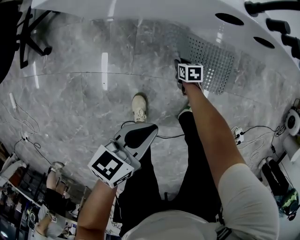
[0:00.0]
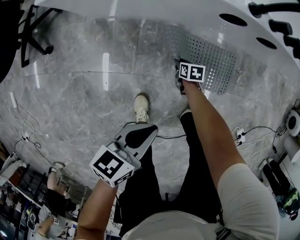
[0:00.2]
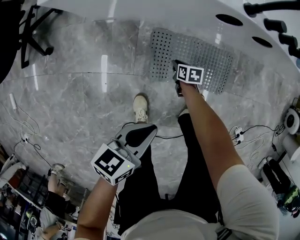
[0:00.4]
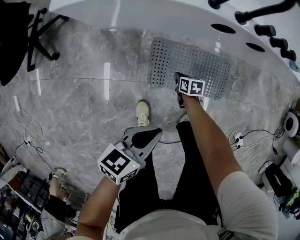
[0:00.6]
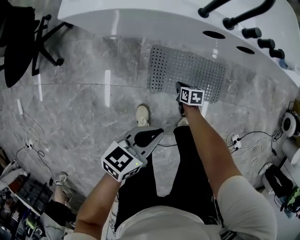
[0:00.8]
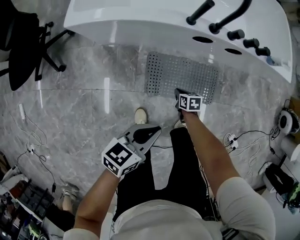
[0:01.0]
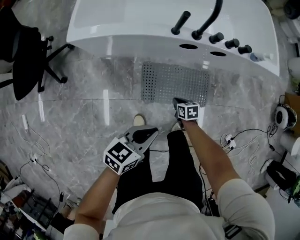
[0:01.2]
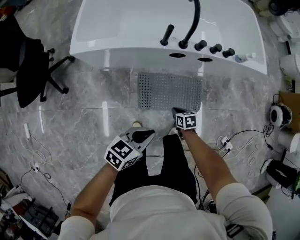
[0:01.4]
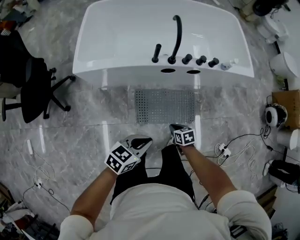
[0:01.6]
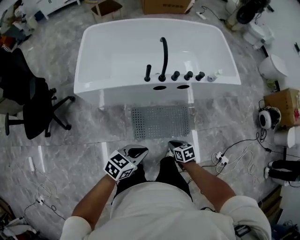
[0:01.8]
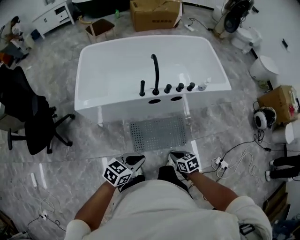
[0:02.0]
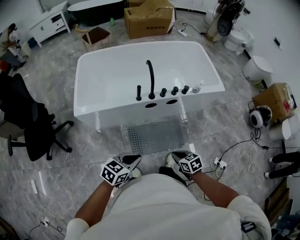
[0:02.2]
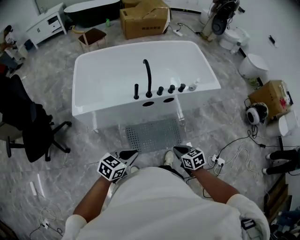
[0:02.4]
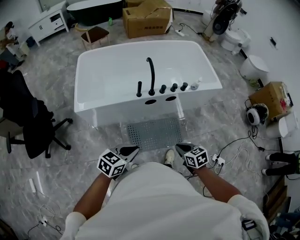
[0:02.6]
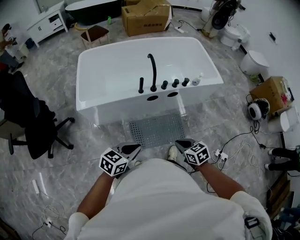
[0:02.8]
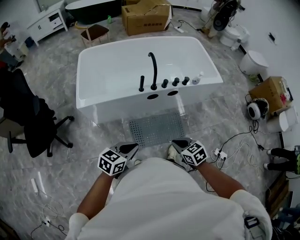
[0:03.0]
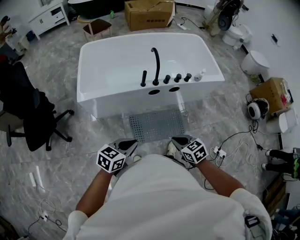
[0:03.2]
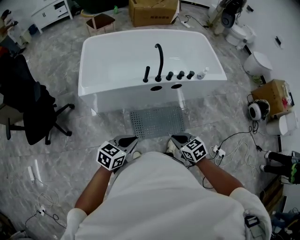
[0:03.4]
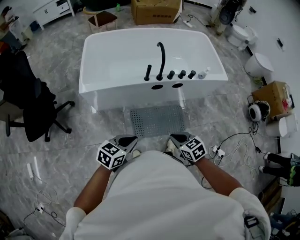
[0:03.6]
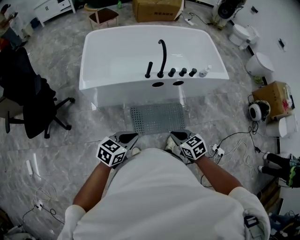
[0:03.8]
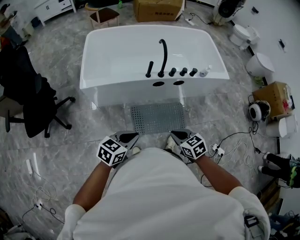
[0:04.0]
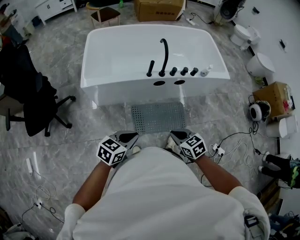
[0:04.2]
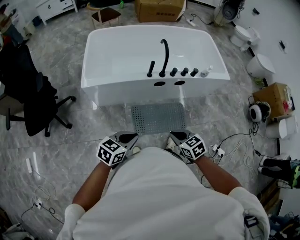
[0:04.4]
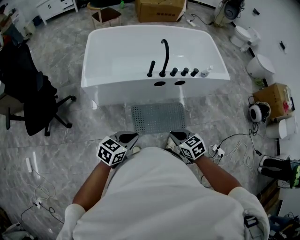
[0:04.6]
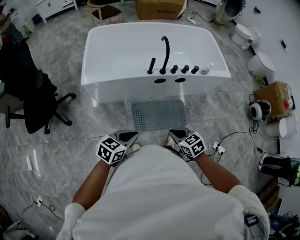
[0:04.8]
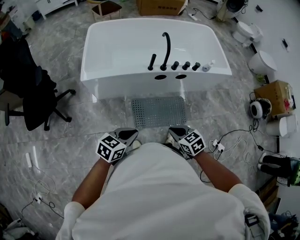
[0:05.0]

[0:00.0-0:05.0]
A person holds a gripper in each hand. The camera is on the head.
0:00.0 to 0:01.6: The left gripper is displaced upward by roughly 20 cm, and rotates approximately 30 degrees, while the right gripper heads upward and backward, covering approximately 40 cm.
0:01.6 to 0:03.4: The left gripper moves upward, to the left and backward, roughly 15 cm. Meanwhile the right gripper goes approximately 25 cm upward, and rotates roughly 20 degrees.
0:03.4 to 0:05.0: The grippers move only a little.

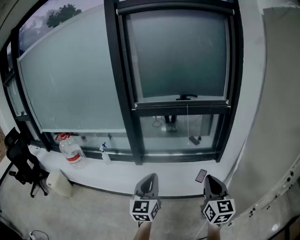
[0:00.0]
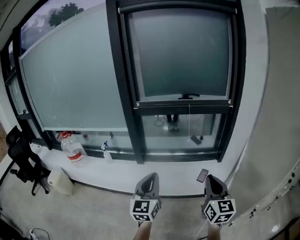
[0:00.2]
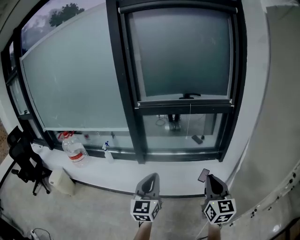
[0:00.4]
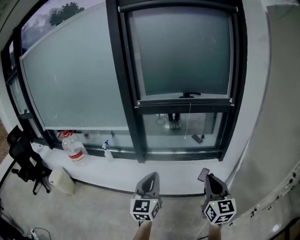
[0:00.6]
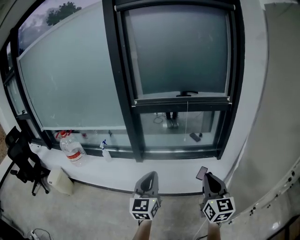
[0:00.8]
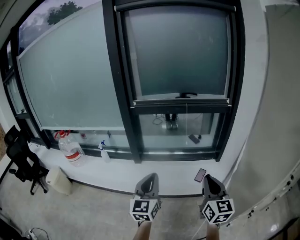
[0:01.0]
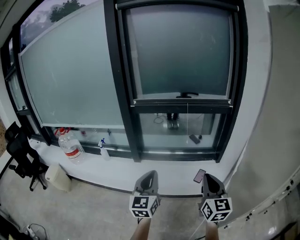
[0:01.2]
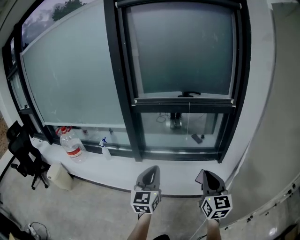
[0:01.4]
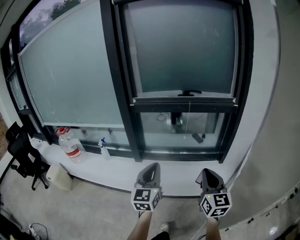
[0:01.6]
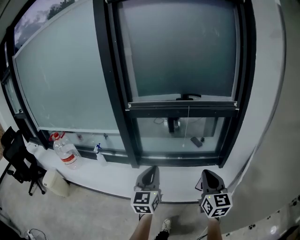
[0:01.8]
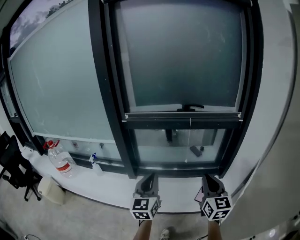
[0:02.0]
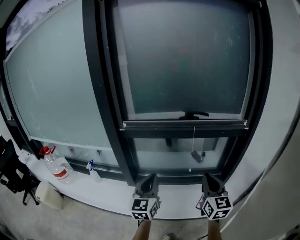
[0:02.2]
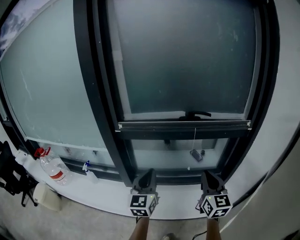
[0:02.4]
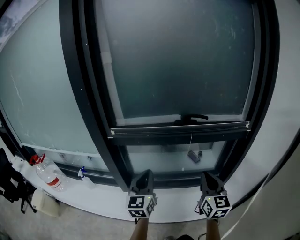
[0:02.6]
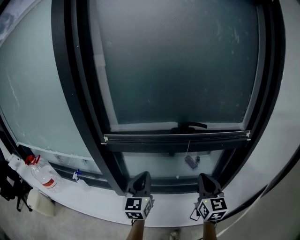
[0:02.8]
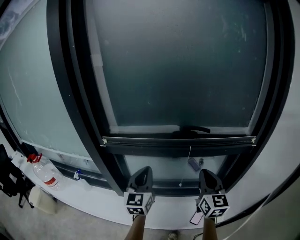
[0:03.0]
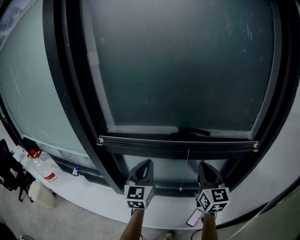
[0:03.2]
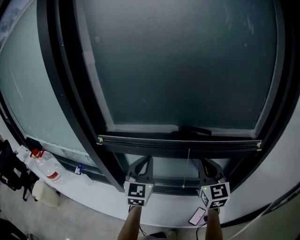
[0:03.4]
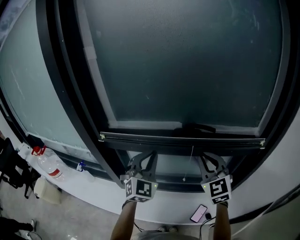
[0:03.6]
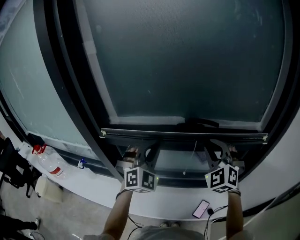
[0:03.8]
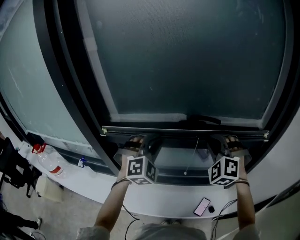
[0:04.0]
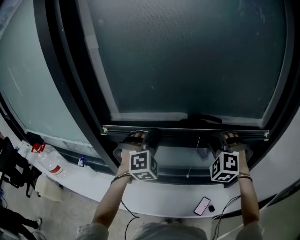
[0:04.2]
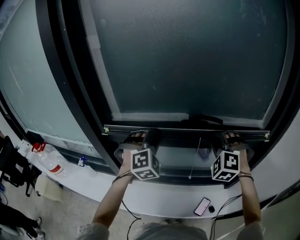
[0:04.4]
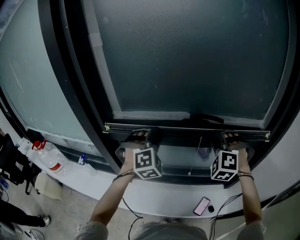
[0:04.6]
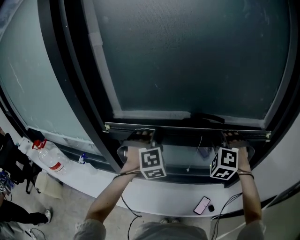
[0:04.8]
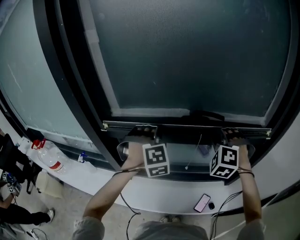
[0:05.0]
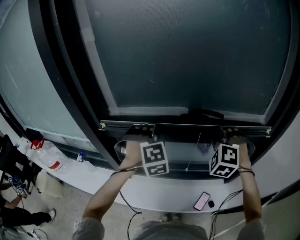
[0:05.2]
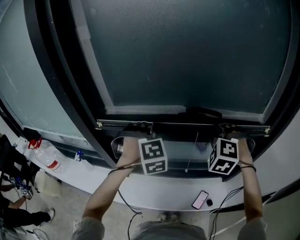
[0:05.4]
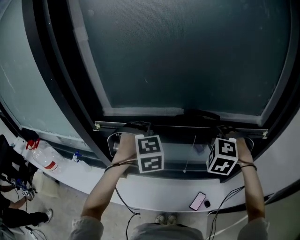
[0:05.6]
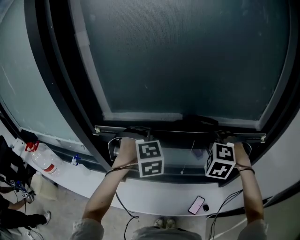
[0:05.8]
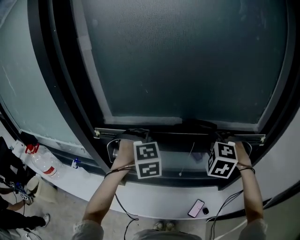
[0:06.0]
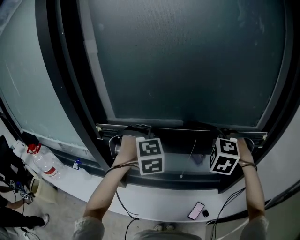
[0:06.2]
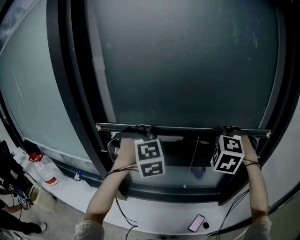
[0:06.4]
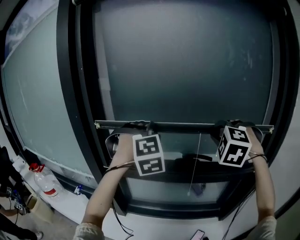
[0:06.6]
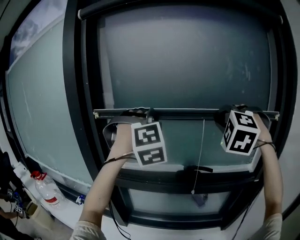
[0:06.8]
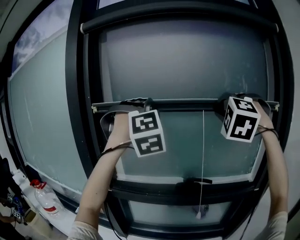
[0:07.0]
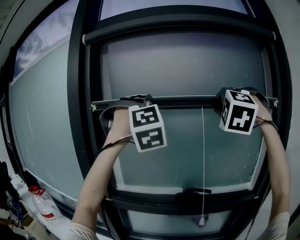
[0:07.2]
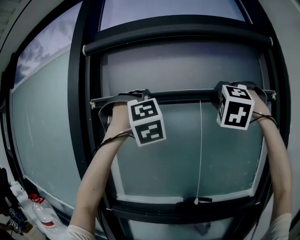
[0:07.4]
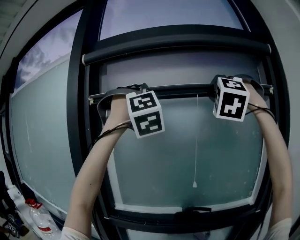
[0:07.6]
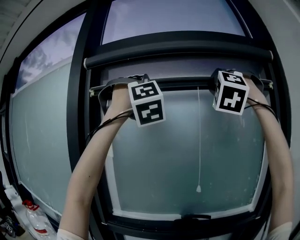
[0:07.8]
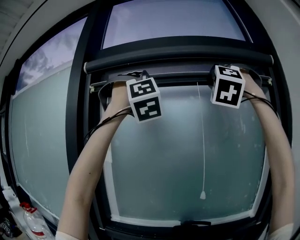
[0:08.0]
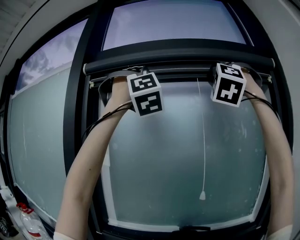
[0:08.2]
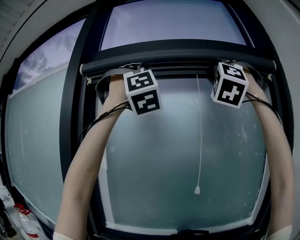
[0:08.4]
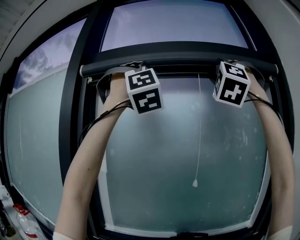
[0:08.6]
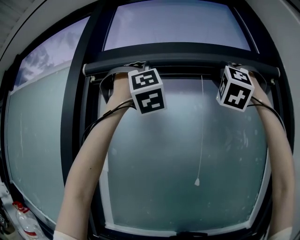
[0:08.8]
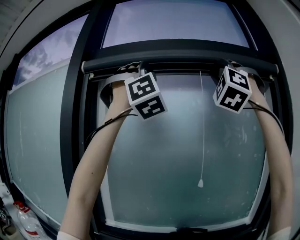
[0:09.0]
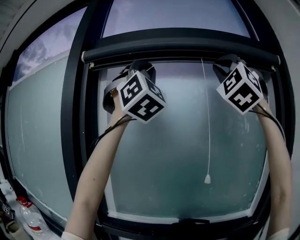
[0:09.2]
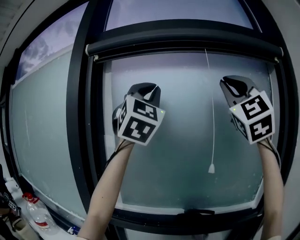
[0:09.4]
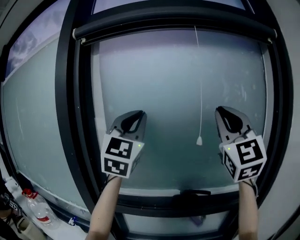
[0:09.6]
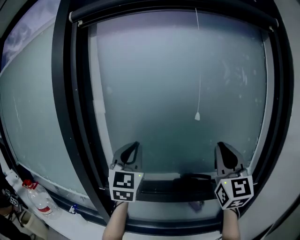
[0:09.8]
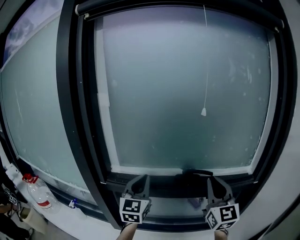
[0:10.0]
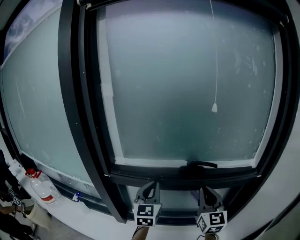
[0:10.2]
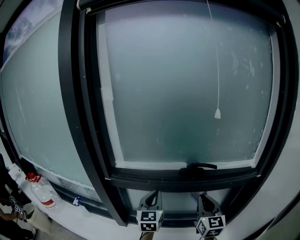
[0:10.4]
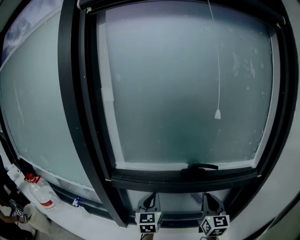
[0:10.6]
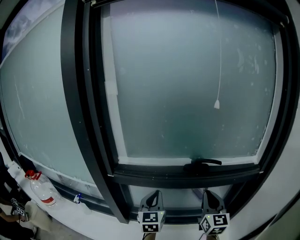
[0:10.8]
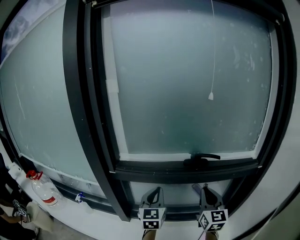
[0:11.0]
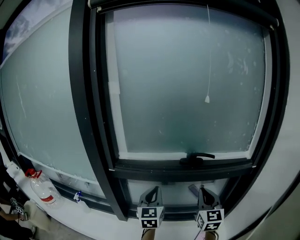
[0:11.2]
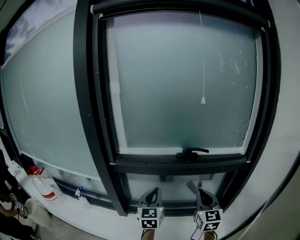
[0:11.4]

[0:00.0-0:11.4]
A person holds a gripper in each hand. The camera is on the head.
0:00.0 to 0:01.4: Both grippers move forward, some 5 cm.
0:01.4 to 0:02.8: The grippers both shift forward by some 40 cm.
0:02.8 to 0:04.2: Both grippers move forward, about 15 cm. The right gripper twists about 80 degrees counterclockwise, seen from behind. Meanwhile the left gripper rotates around the line of its fingers by roughly 70 degrees, clockwise from behind.
0:04.2 to 0:05.6: The left gripper swivels some 30 degrees.
0:05.6 to 0:07.2: Both grippers travel together upward, roughly 50 cm. The left gripper points its fingers approximately 40 degrees further upward. The right gripper tilts its fingers some 30 degrees upward.
0:07.2 to 0:08.6: Both grippers travel together upward, some 25 cm. The left gripper swivels approximately 30 degrees. Meanwhile the right gripper tilts its fingers approximately 30 degrees upward.
0:08.6 to 0:10.0: Both grippers move downward, about 60 cm. The left gripper rotates around the line of its fingers by approximately 80 degrees, counterclockwise from behind, while the right gripper rotates around the line of its fingers by about 80 degrees, clockwise from behind.
0:10.0 to 0:11.4: The right gripper is displaced downward and backward by roughly 15 cm. The left gripper moves backward and downward, about 15 cm.

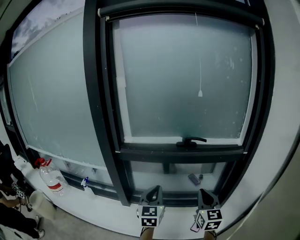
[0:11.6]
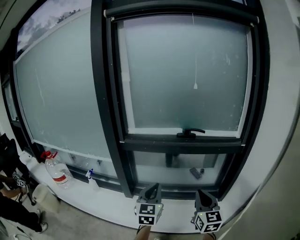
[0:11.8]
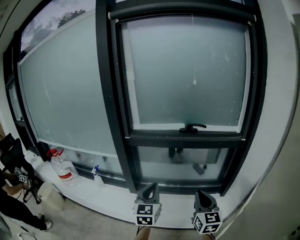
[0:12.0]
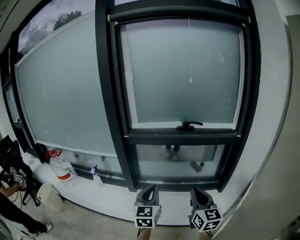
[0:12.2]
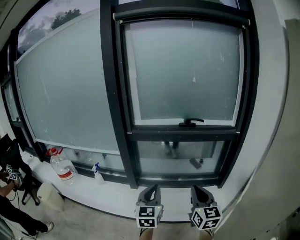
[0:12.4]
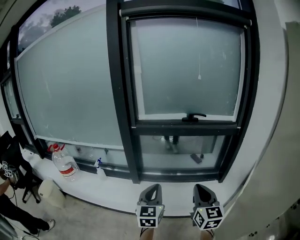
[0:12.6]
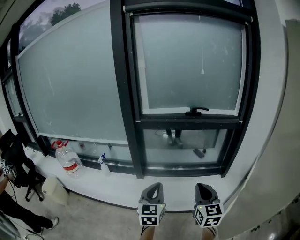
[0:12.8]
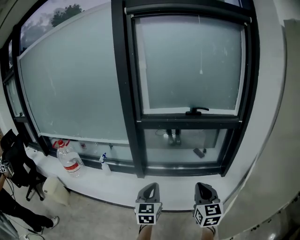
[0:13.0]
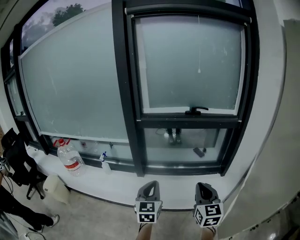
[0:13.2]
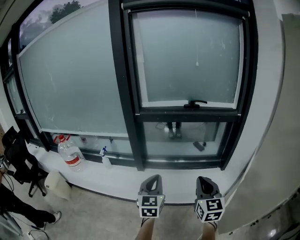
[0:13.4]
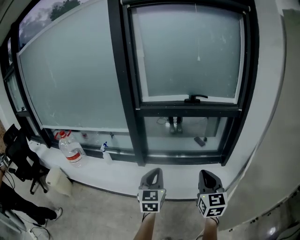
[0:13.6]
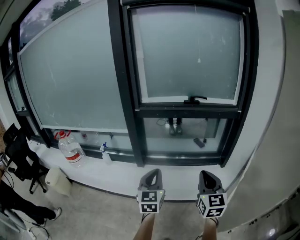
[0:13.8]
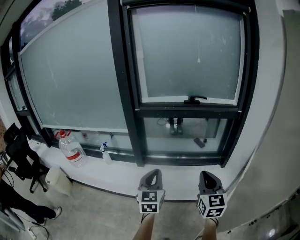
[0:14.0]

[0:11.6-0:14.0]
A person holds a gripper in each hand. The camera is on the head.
0:11.6 to 0:12.8: The left gripper moves backward, roughly 25 cm, while the right gripper travels backward and to the left by roughly 25 cm.
0:12.8 to 0:14.0: The right gripper ends up about 5 cm from where it was.

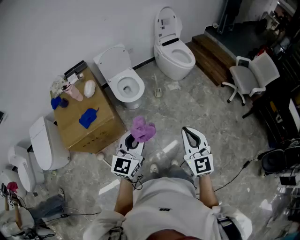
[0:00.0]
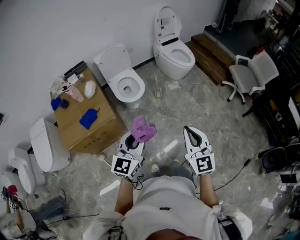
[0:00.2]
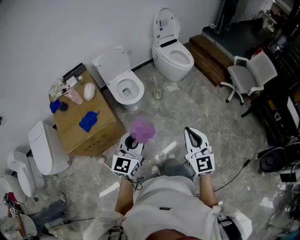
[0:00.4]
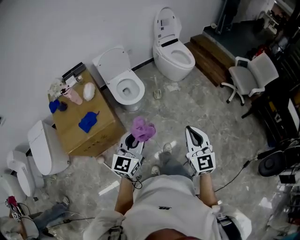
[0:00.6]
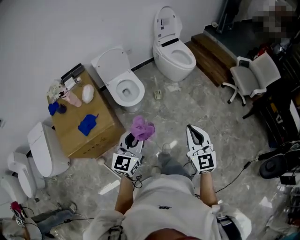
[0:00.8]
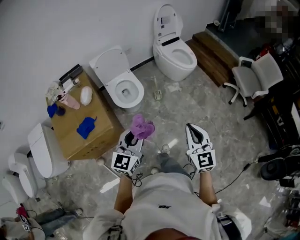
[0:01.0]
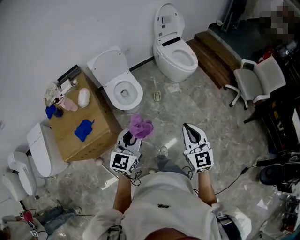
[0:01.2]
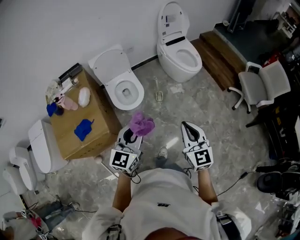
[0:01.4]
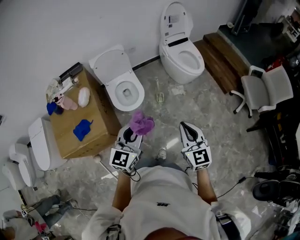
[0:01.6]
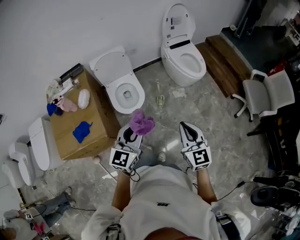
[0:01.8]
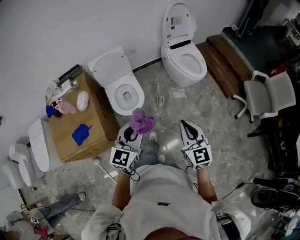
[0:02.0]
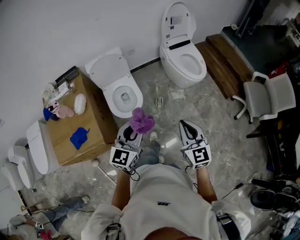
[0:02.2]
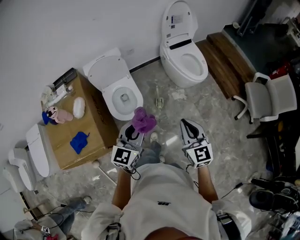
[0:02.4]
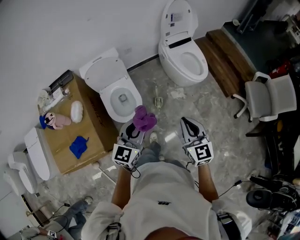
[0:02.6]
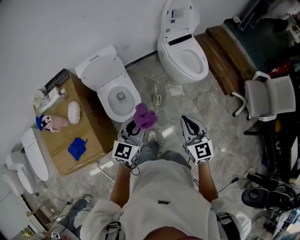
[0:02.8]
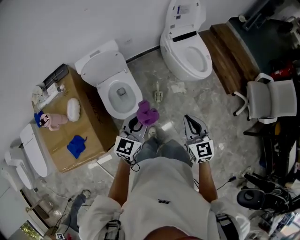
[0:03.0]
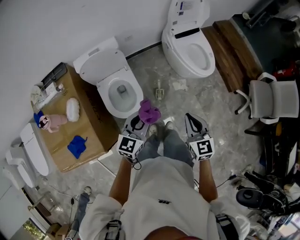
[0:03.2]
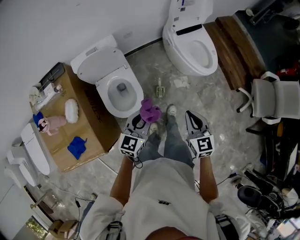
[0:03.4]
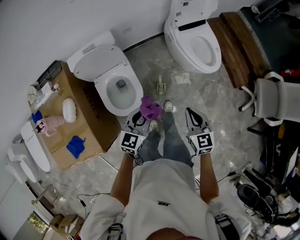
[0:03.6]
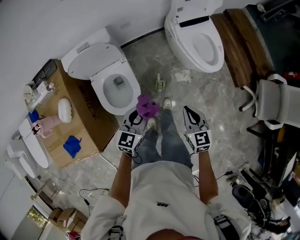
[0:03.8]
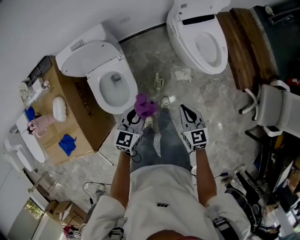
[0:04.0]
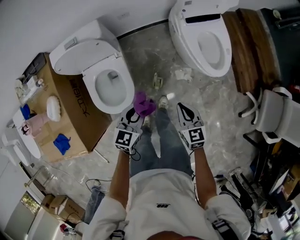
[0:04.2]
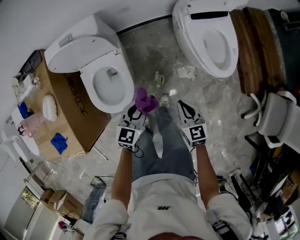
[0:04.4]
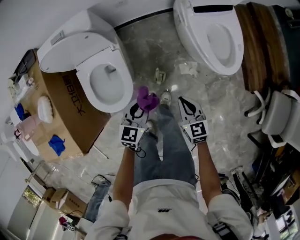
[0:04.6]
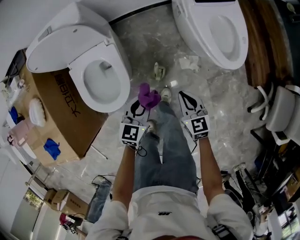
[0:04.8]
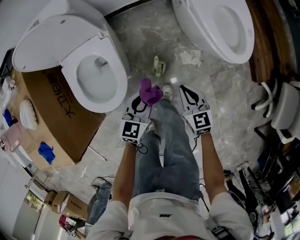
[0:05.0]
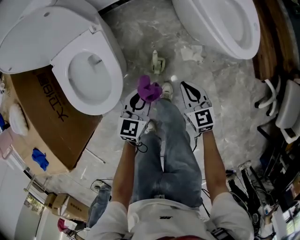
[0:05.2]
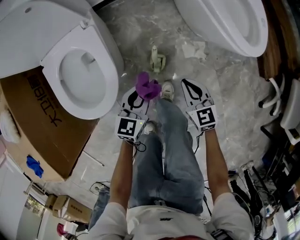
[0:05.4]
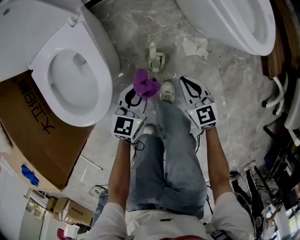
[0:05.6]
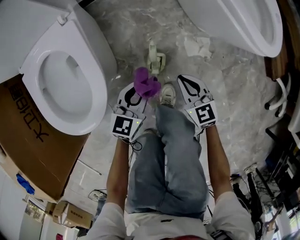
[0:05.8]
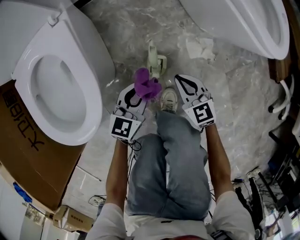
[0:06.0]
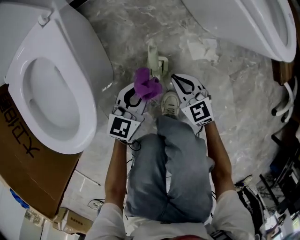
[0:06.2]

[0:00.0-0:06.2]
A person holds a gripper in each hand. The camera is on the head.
0:00.0 to 0:01.6: The two grippers go approximately 25 cm forward.
0:01.6 to 0:03.2: The left gripper shifts about 35 cm forward and downward, while the right gripper travels forward by roughly 30 cm.
0:03.2 to 0:04.6: Both grippers travel together downward and forward, some 35 cm. The left gripper turns by approximately 20 degrees, while the right gripper rotates approximately 20 degrees.
0:04.6 to 0:06.2: The grippers both shift downward by some 40 cm.
